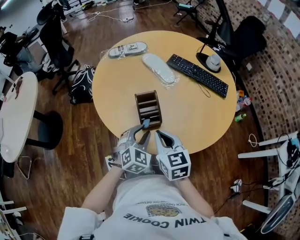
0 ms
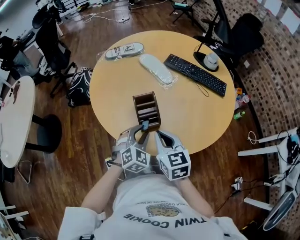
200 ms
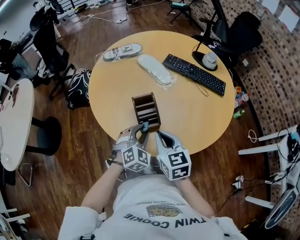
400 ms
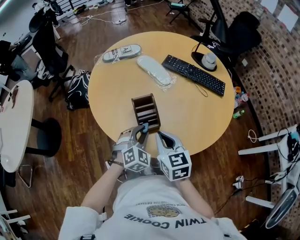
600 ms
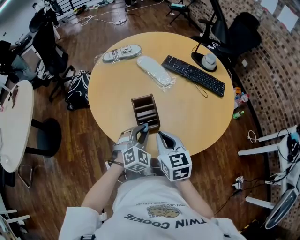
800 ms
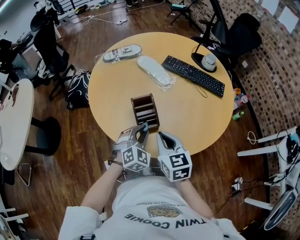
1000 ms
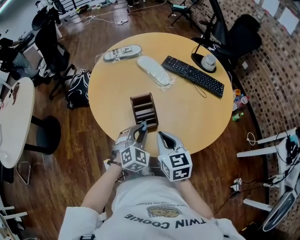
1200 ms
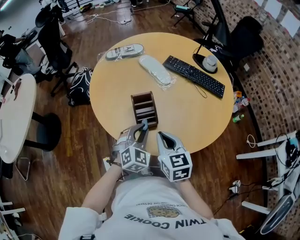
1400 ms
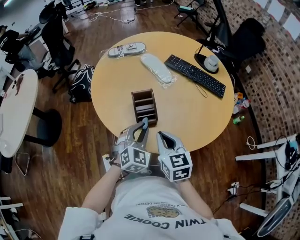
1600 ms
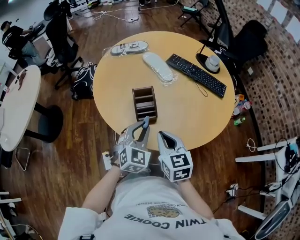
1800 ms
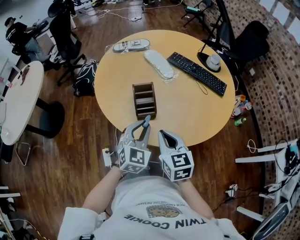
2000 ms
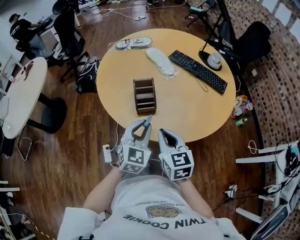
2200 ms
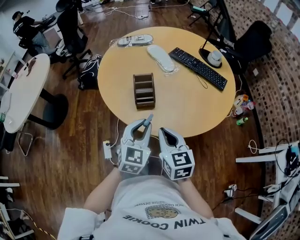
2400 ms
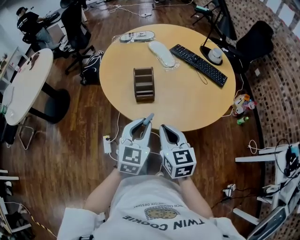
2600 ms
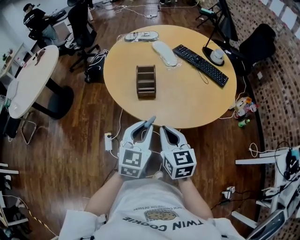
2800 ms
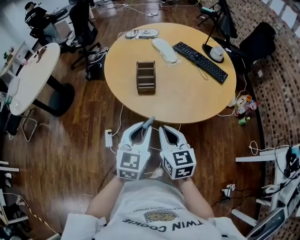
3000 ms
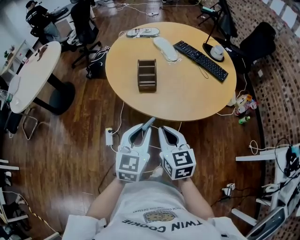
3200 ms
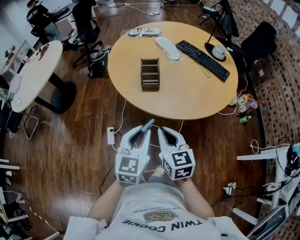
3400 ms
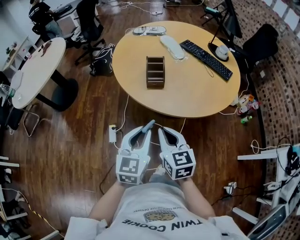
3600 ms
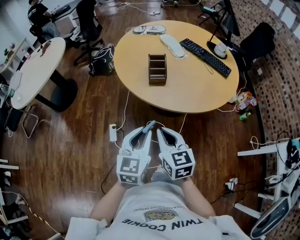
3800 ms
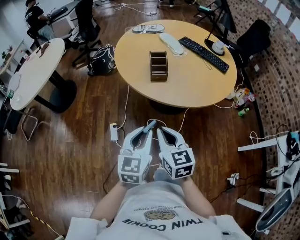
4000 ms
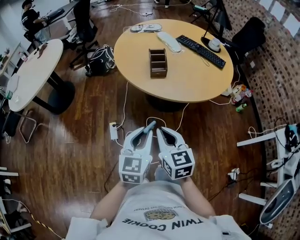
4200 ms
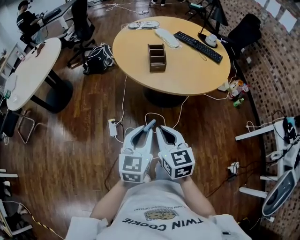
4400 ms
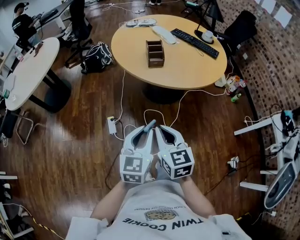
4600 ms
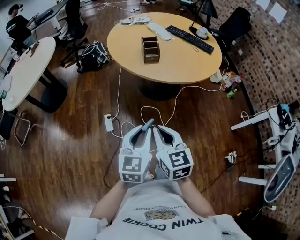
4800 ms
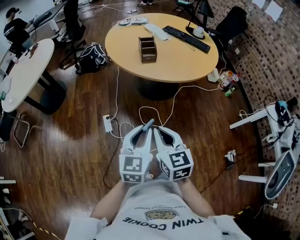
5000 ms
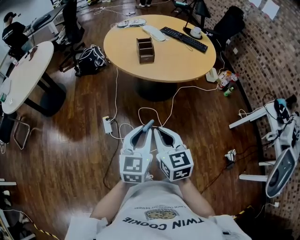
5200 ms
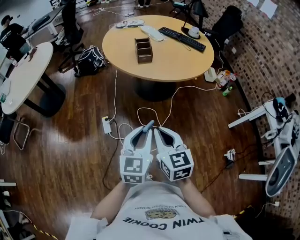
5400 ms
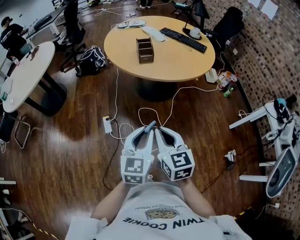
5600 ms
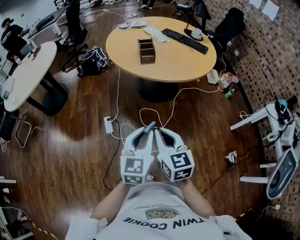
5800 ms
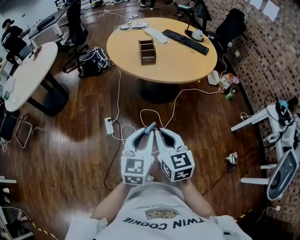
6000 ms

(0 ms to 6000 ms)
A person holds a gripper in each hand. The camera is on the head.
0 ms - 1600 ms: The grippers stay close to where they were, moving slightly.
1600 ms - 3000 ms: The left gripper moves backward and upward, about 25 cm, and turns by approximately 30 degrees. The right gripper goes some 15 cm backward.
3000 ms - 4400 ms: Both grippers move backward and to the left, about 20 cm.
4400 ms - 6000 ms: Both grippers move backward, some 10 cm.

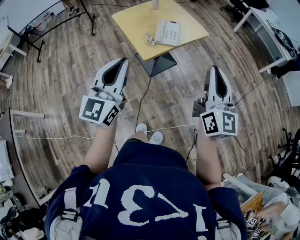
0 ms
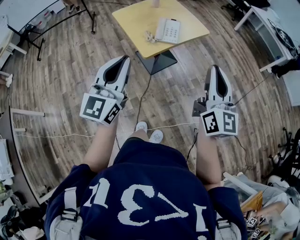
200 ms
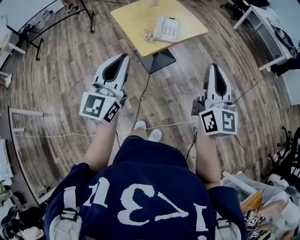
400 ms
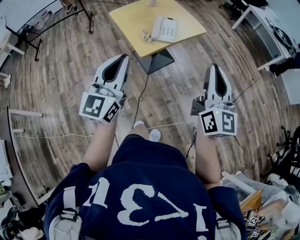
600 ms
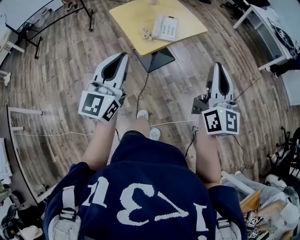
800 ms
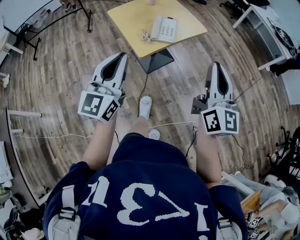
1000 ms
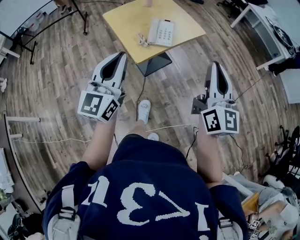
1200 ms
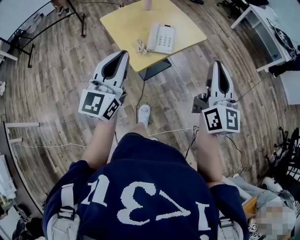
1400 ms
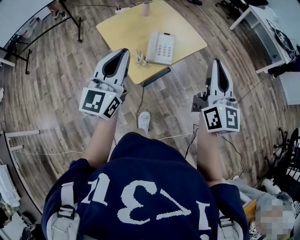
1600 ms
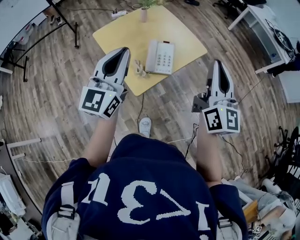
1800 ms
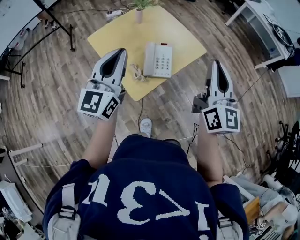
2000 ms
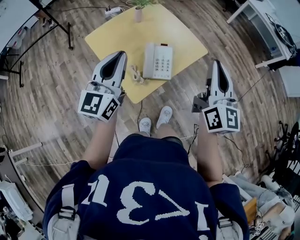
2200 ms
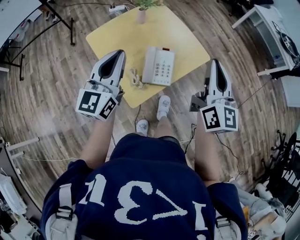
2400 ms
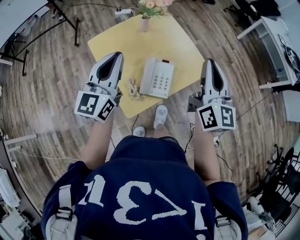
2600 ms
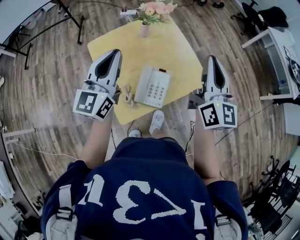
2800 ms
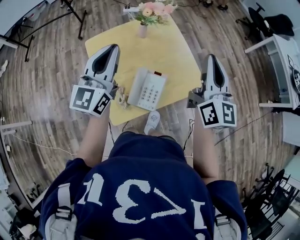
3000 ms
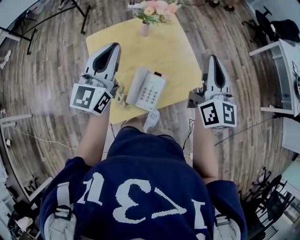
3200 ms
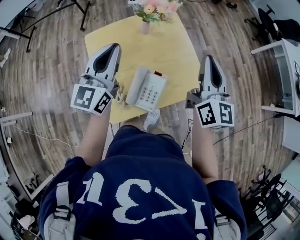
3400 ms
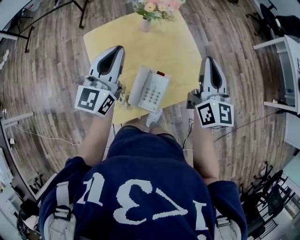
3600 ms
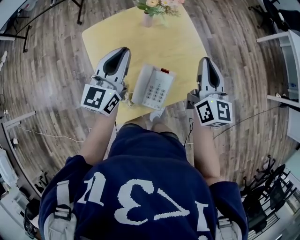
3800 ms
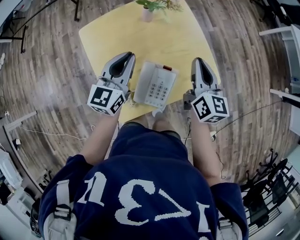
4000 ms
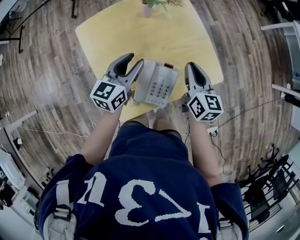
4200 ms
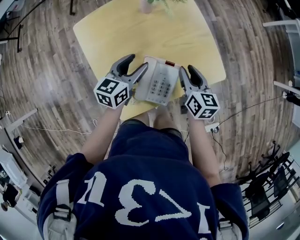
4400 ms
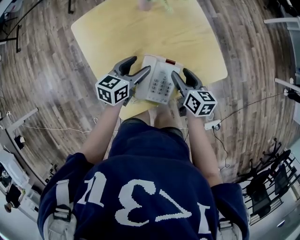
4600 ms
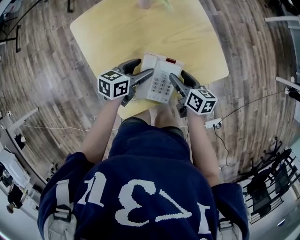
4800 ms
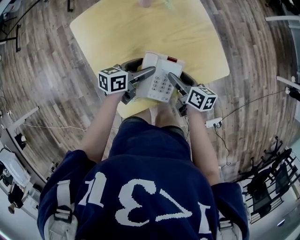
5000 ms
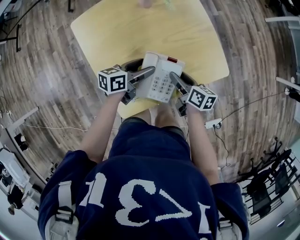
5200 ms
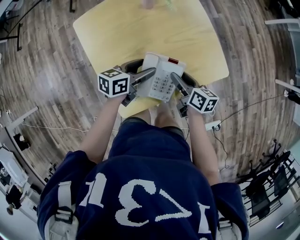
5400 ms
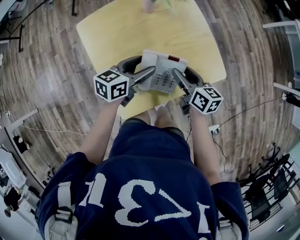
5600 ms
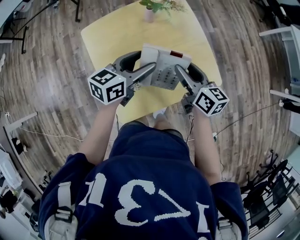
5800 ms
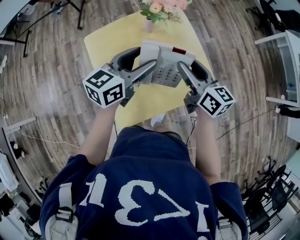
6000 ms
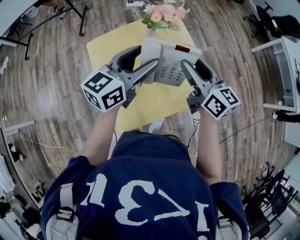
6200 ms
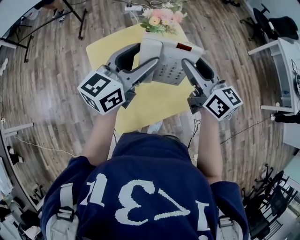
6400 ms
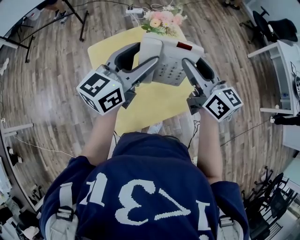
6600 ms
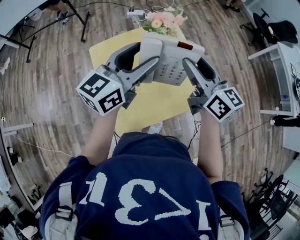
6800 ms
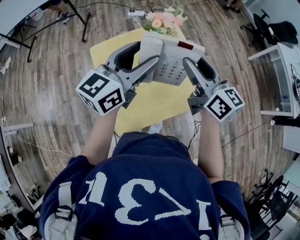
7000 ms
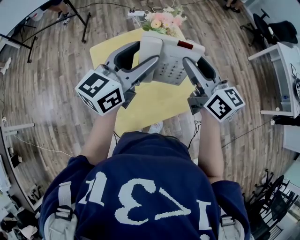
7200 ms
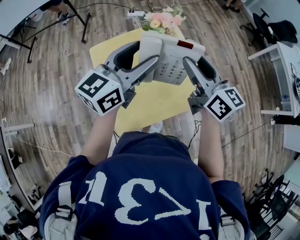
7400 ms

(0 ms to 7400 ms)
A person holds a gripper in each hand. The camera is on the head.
0 ms - 1400 ms: The two grippers go roughly 15 cm forward.
1400 ms - 3000 ms: Both grippers move forward, some 40 cm.
3000 ms - 4400 ms: The grippers both shift downward by approximately 30 cm. The left gripper points its fingers some 30 degrees further downward, and opens its fingers. Meanwhile the right gripper points its fingers about 40 degrees further downward, and opens.
4400 ms - 6000 ms: The two grippers go roughly 15 cm upward. The right gripper turns by about 20 degrees.
6000 ms - 7400 ms: Both grippers move upward, roughly 10 cm.

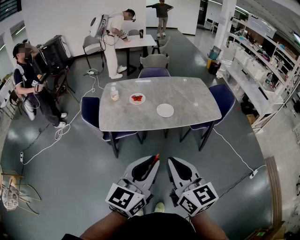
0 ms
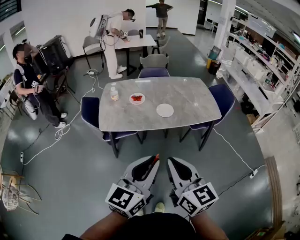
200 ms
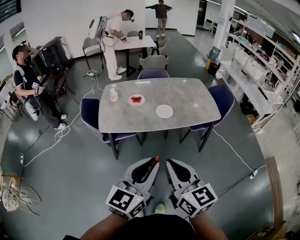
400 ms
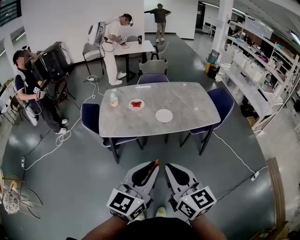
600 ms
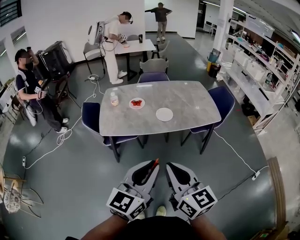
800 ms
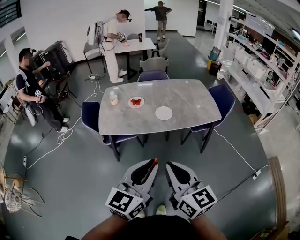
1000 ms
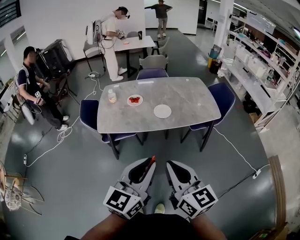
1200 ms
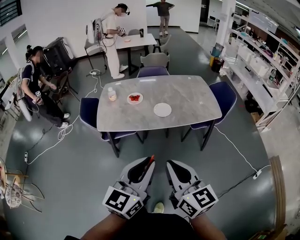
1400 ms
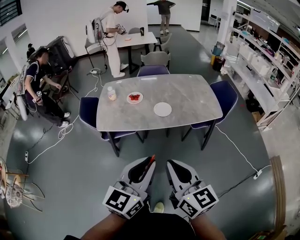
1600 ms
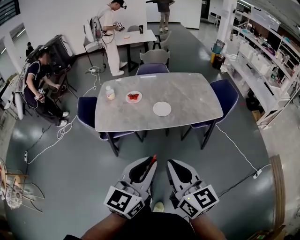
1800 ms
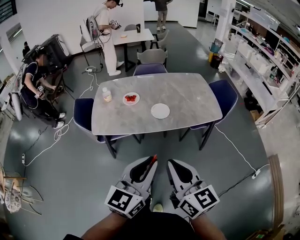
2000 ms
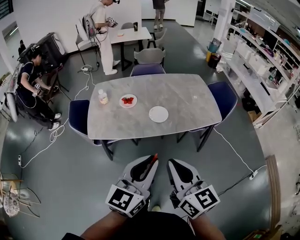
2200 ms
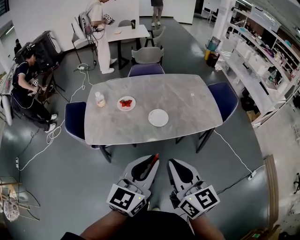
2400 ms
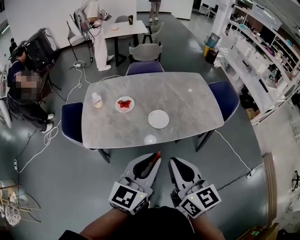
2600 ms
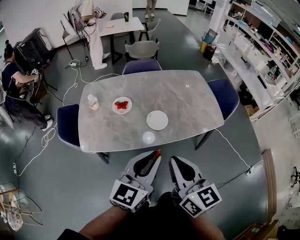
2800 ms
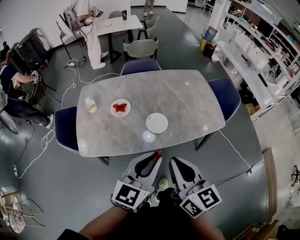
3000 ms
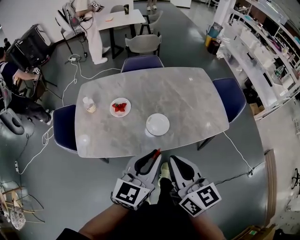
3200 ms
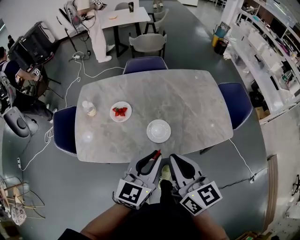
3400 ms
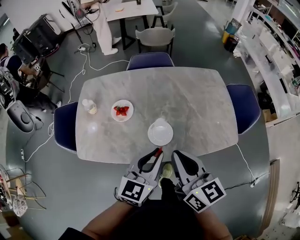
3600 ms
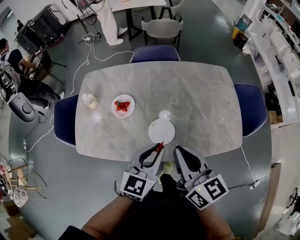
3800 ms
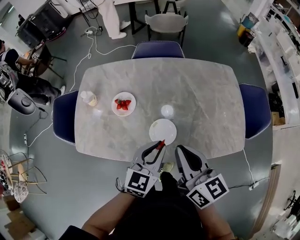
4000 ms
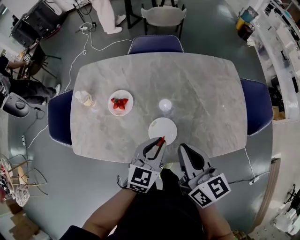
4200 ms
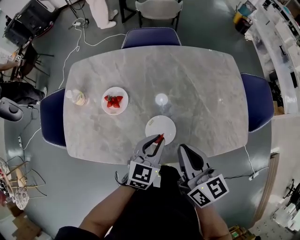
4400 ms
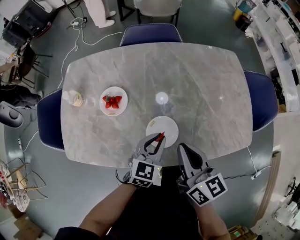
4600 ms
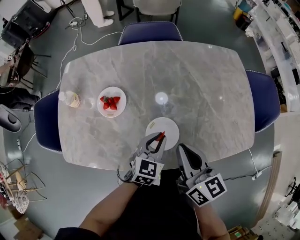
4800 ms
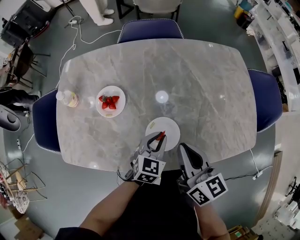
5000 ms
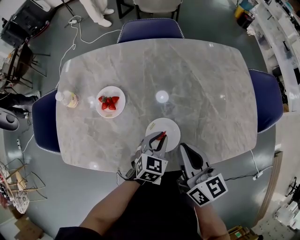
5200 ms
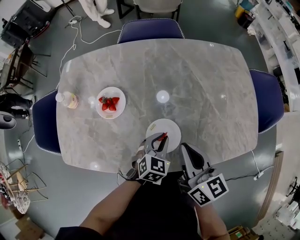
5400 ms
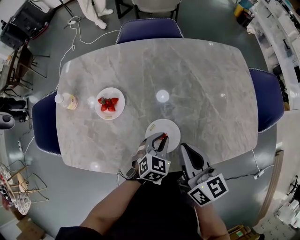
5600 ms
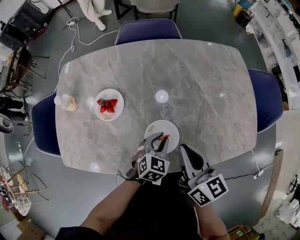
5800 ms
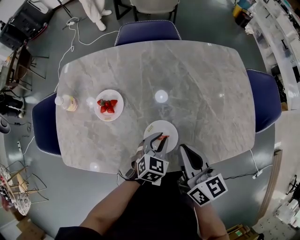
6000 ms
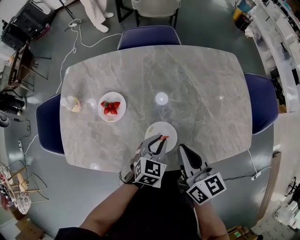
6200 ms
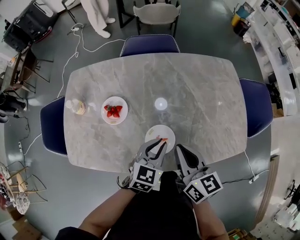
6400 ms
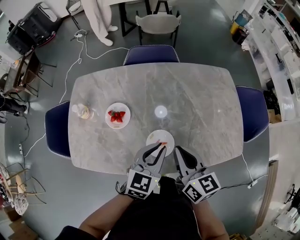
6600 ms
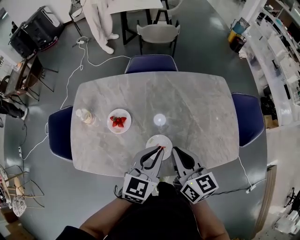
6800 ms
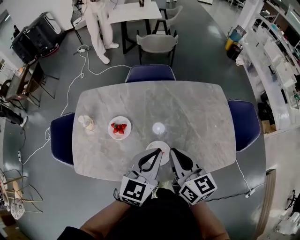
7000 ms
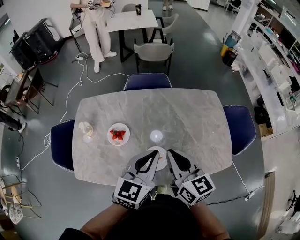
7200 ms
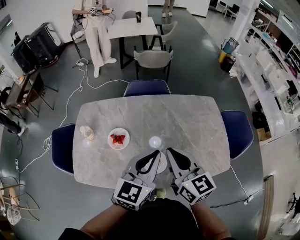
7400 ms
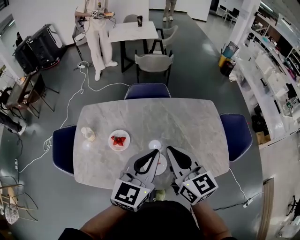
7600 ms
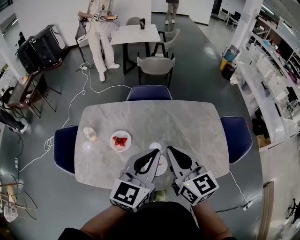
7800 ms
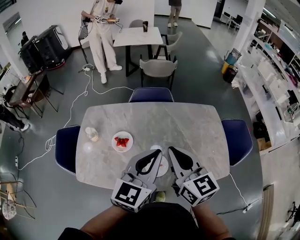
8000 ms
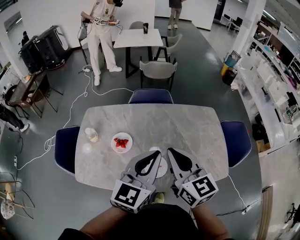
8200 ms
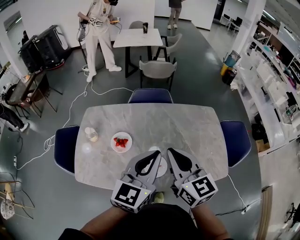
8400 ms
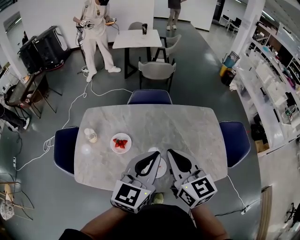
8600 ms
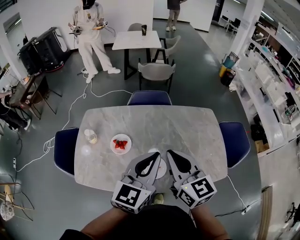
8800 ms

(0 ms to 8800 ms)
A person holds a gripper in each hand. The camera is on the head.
0 ms - 1400 ms: The right gripper goes some 5 cm to the right.
1400 ms - 3000 ms: Both grippers move forward, roughly 30 cm.
3000 ms - 4400 ms: Both grippers move forward and downward, approximately 30 cm. The left gripper turns by some 20 degrees.
4400 ms - 5800 ms: The left gripper is displaced downward by roughly 15 cm, and swivels about 20 degrees; the right gripper goes some 10 cm downward.
5800 ms - 7400 ms: The right gripper is displaced upward by approximately 20 cm. The left gripper is displaced upward by some 40 cm, and tips its fingers upward by some 30 degrees.
7400 ms - 8800 ms: The right gripper shifts by approximately 5 cm, while the left gripper changes place by about 5 cm.

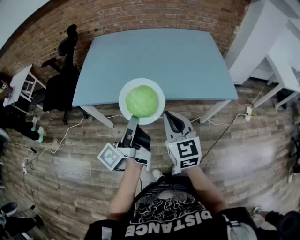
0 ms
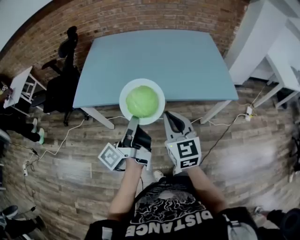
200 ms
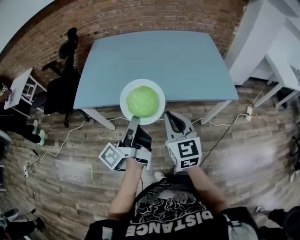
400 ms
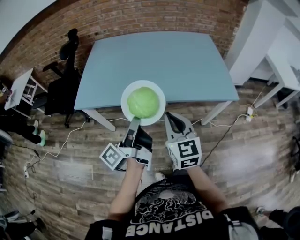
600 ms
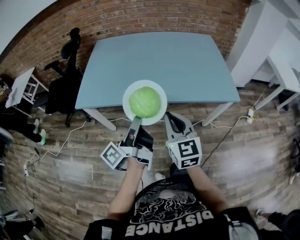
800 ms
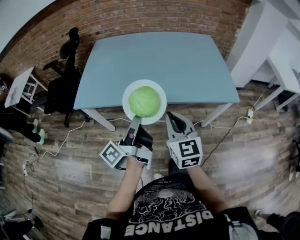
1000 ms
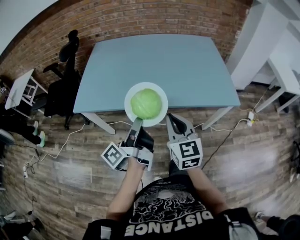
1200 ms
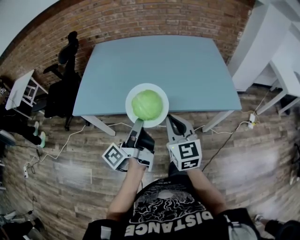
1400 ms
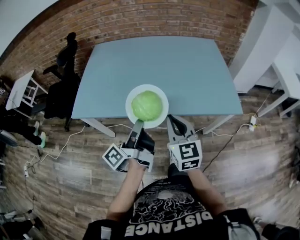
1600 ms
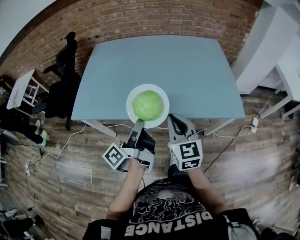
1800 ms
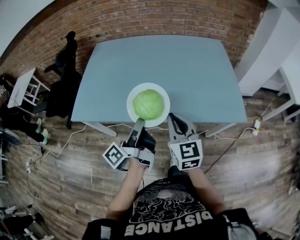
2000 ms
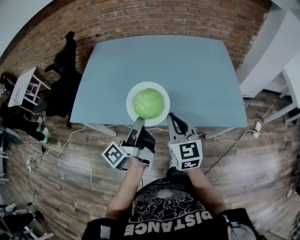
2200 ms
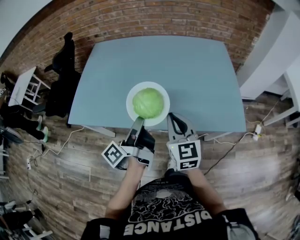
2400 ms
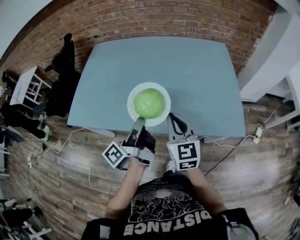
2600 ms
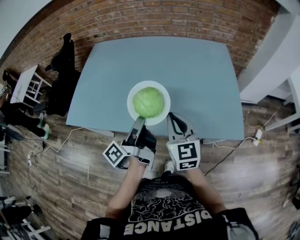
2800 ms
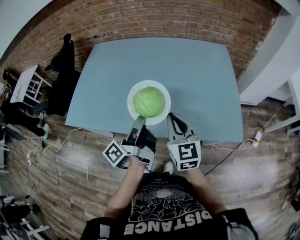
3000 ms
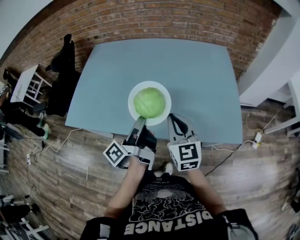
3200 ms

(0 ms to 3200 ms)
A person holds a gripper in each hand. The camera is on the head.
0 ms - 1600 ms: The right gripper changes place by roughly 10 cm.
1600 ms - 3200 ms: The right gripper shifts by roughly 15 cm.
